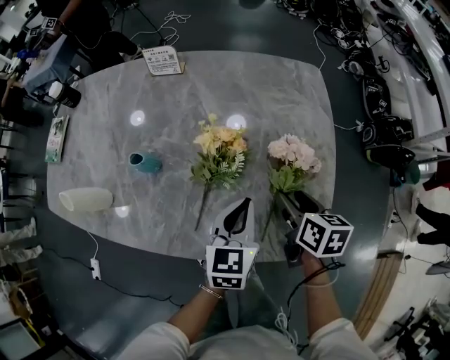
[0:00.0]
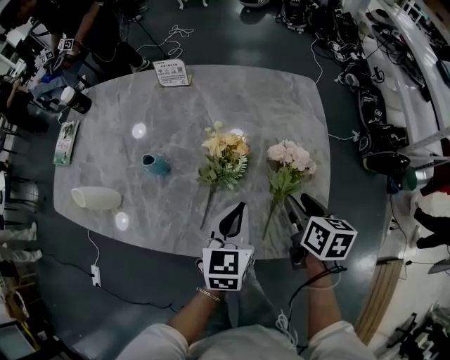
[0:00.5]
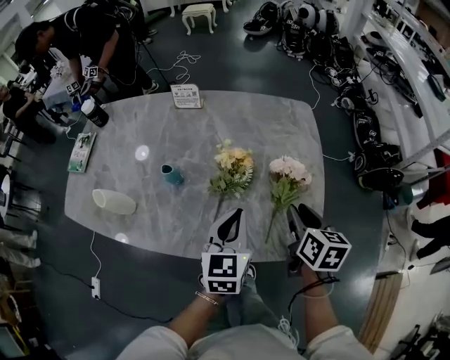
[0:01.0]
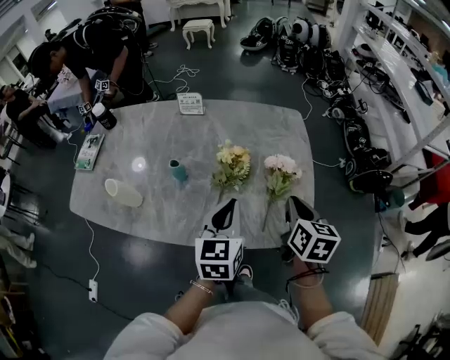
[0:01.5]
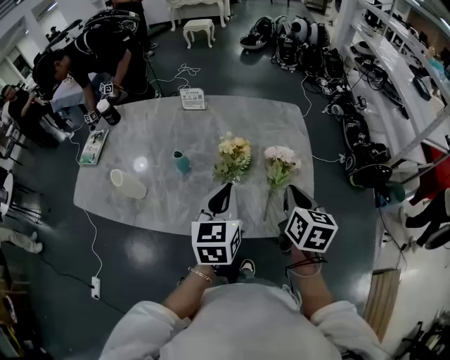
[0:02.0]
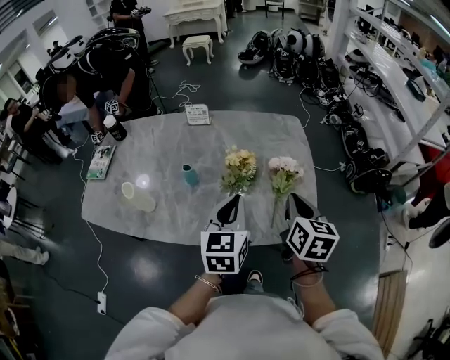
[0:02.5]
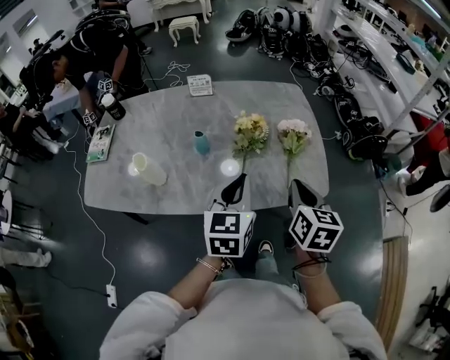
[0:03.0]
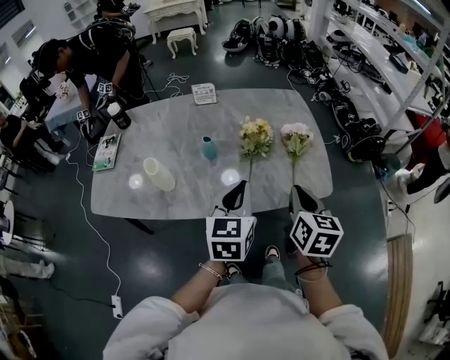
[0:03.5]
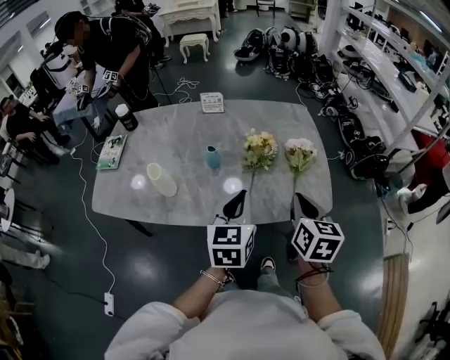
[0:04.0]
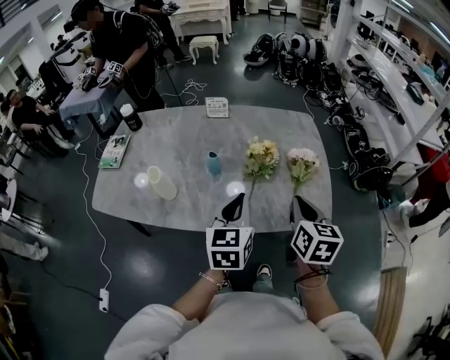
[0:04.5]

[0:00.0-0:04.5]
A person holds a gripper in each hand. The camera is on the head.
0:00.0 to 0:02.0: The left gripper shifts about 20 cm upward, backward and to the left; the right gripper shifts approximately 20 cm upward and backward, rotates approximately 20 degrees, and closes.
0:02.0 to 0:04.5: The two grippers go approximately 15 cm to the left and backward.

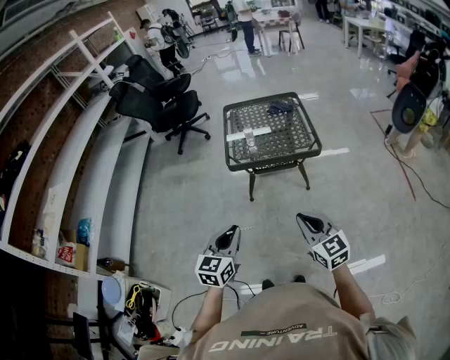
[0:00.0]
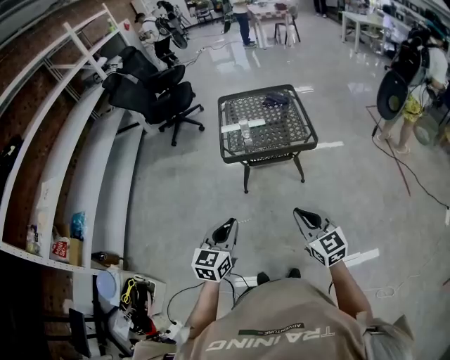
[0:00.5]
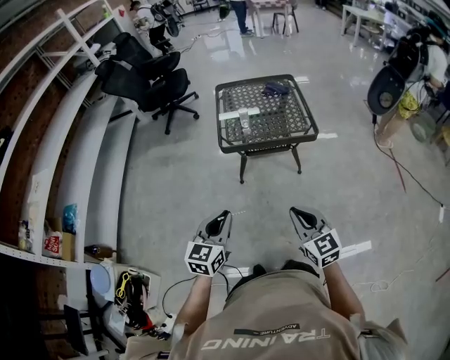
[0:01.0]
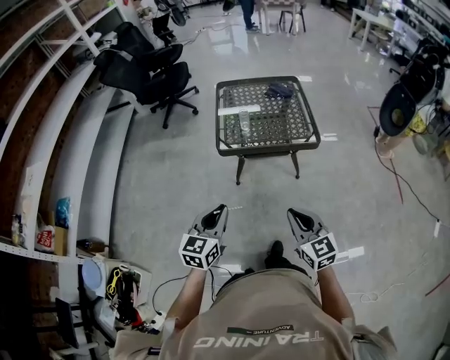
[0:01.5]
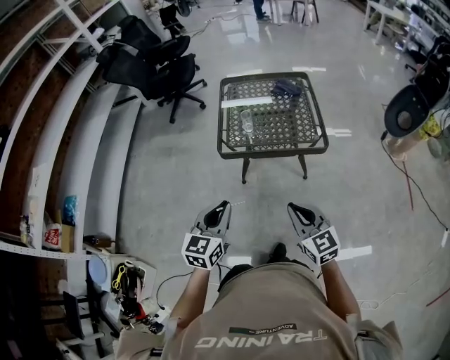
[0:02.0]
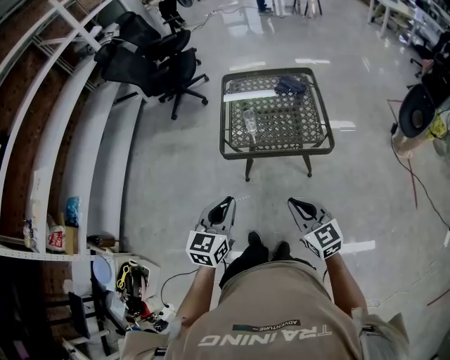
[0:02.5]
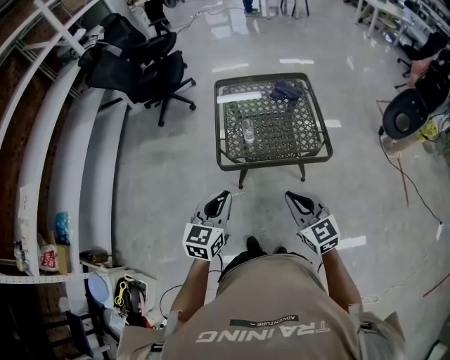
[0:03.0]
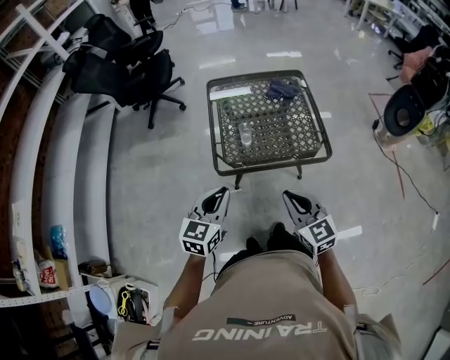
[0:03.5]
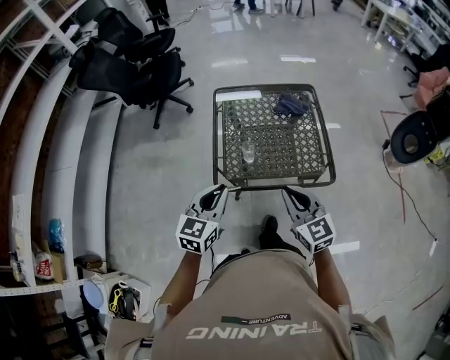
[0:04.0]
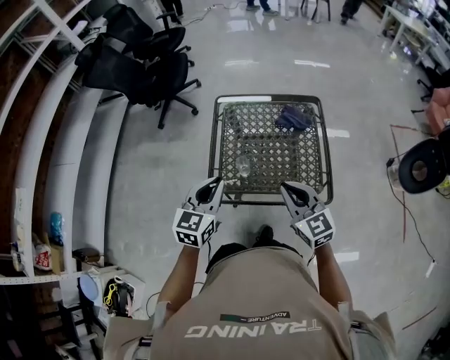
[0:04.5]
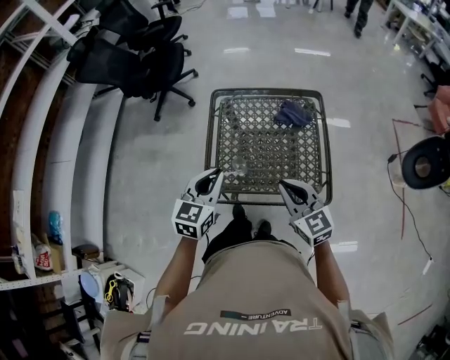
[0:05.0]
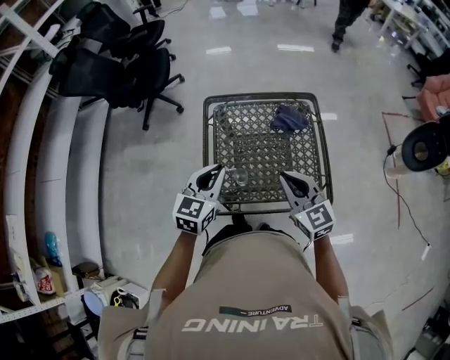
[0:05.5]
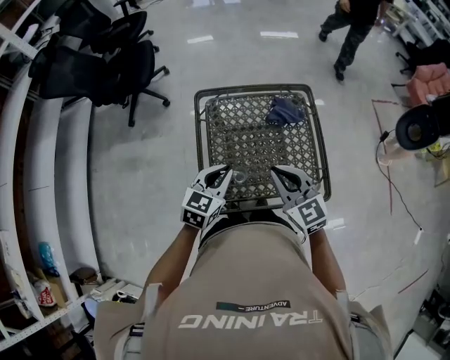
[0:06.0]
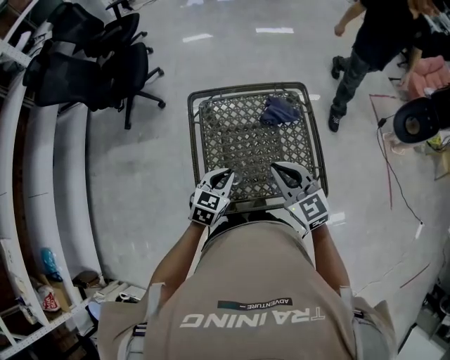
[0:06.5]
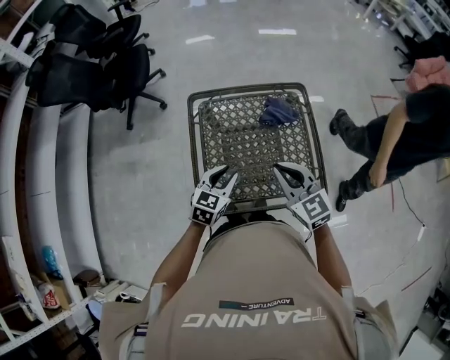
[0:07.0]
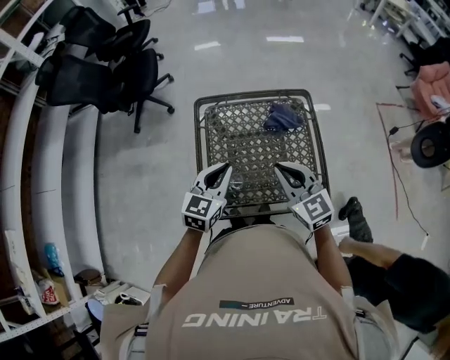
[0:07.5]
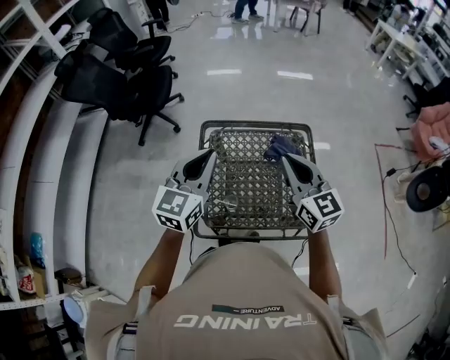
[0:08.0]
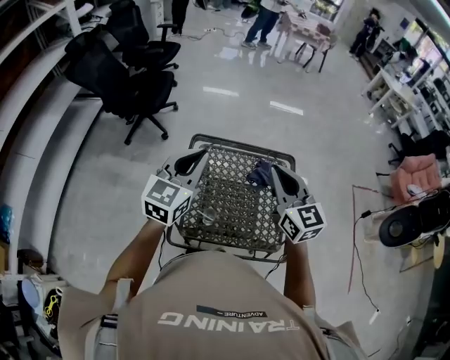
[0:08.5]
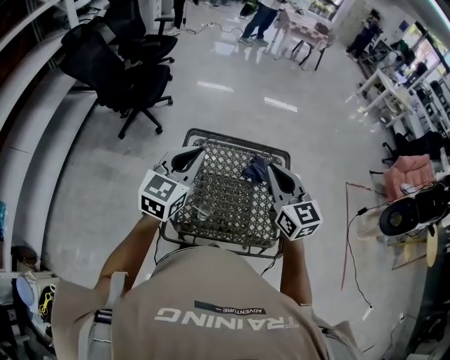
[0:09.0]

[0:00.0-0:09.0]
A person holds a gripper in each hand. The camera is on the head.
0:00.0 to 0:02.0: The grippers both shift forward by approximately 15 cm.
0:02.0 to 0:04.5: The two grippers go approximately 35 cm forward.
0:04.5 to 0:07.0: The right gripper is displaced forward by some 15 cm; the left gripper travels downward and forward by about 20 cm, and swivels some 20 degrees.
0:07.0 to 0:09.0: The right gripper heads upward and forward, covering roughly 15 cm, while the left gripper shifts some 20 cm upward, swivels roughly 30 degrees, and closes its fingers.

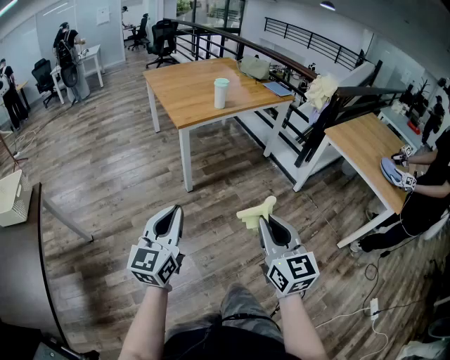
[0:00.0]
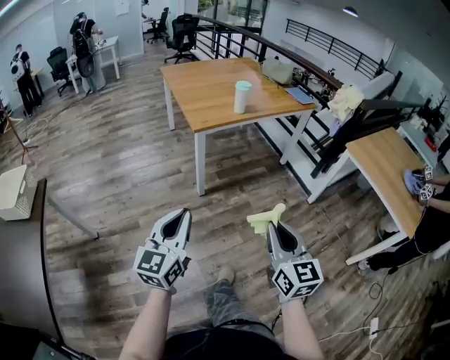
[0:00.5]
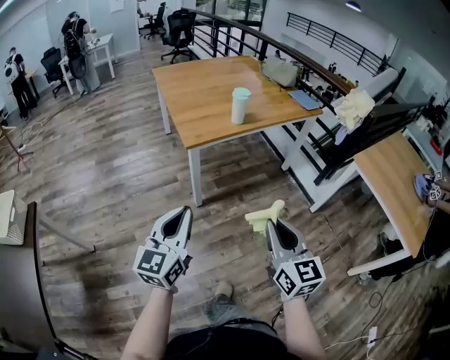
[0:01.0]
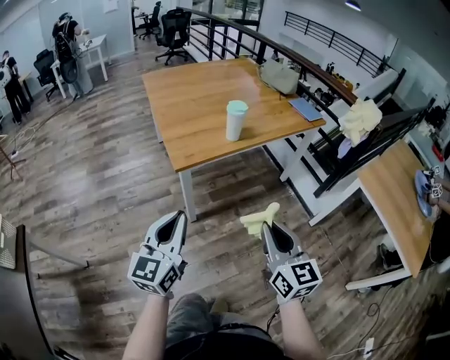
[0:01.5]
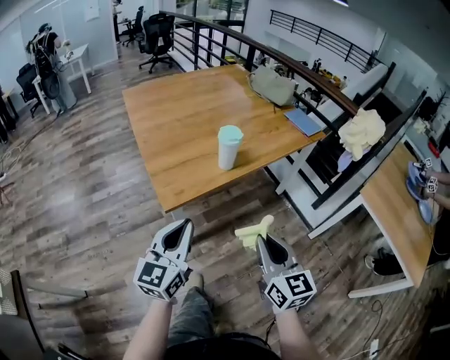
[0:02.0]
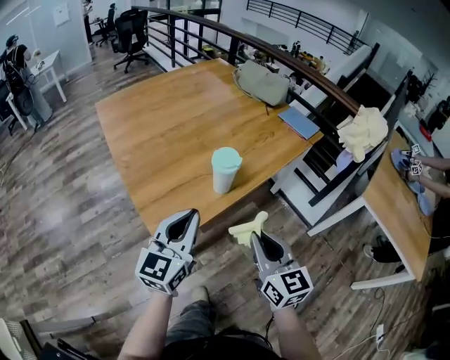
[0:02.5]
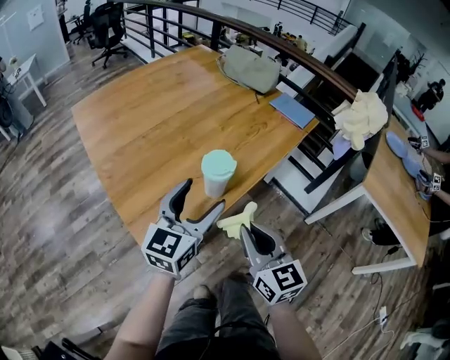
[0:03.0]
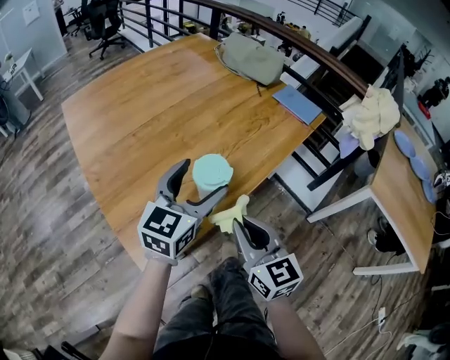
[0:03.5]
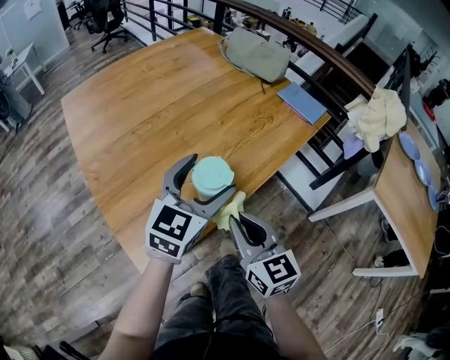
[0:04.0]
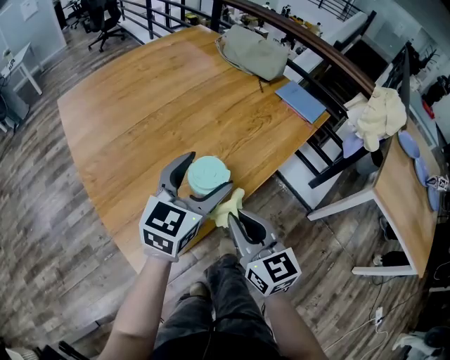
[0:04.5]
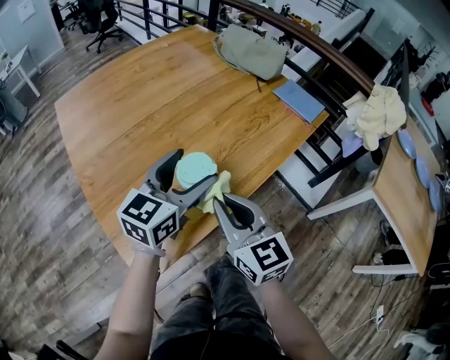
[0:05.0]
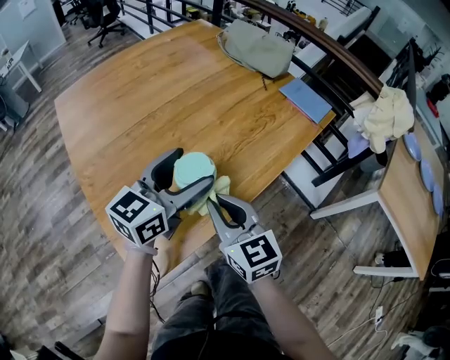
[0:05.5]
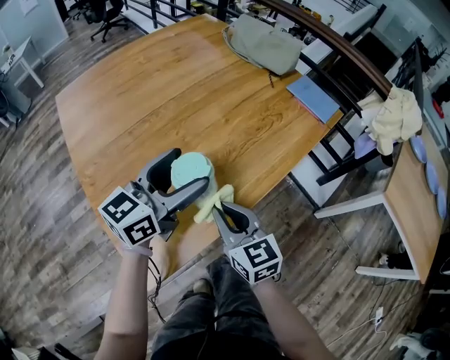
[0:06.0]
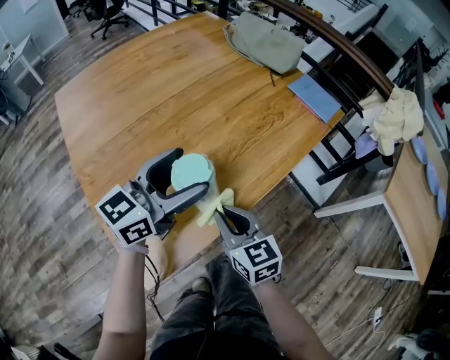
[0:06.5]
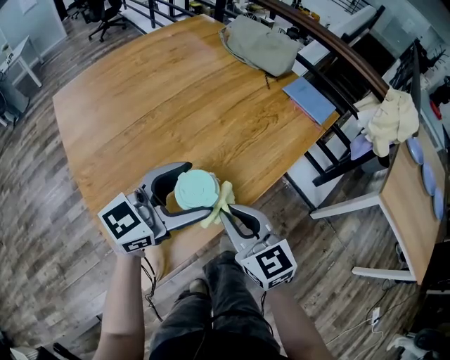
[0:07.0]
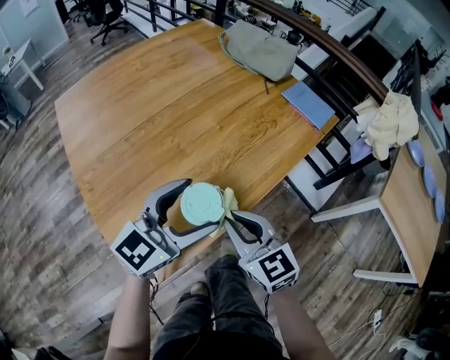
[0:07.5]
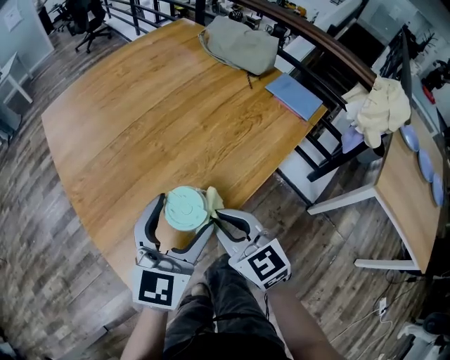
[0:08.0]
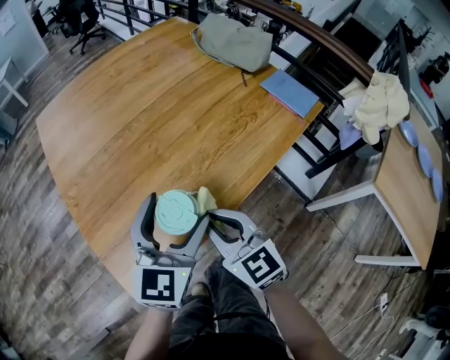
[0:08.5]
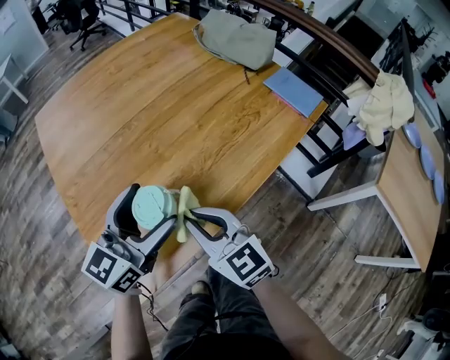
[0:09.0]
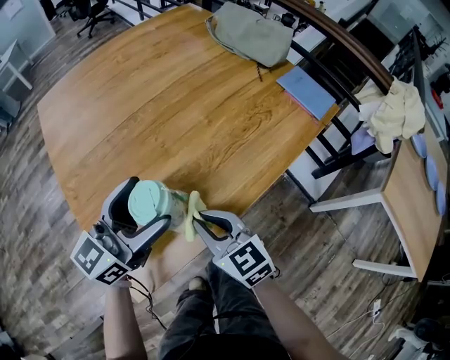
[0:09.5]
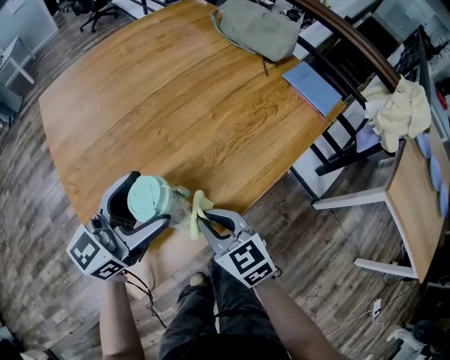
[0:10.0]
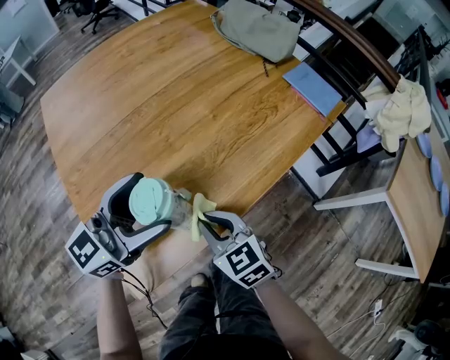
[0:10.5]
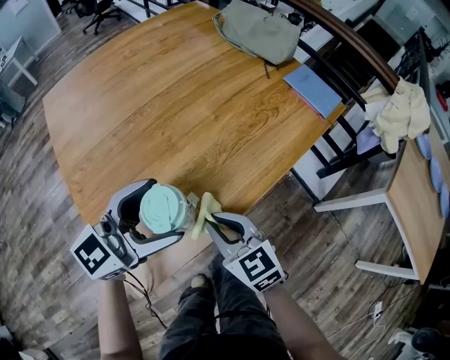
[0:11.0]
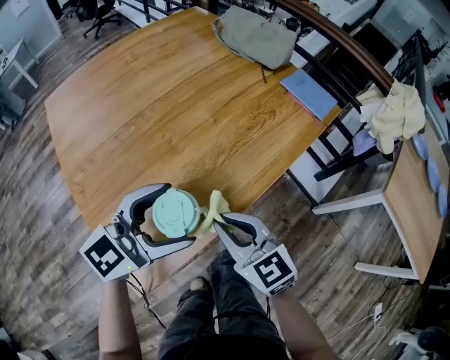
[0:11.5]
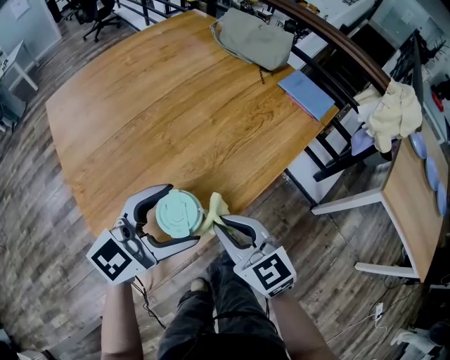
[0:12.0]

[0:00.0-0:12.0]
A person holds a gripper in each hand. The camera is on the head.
0:00.0 to 0:02.0: The two grippers travel together, forward, approximately 50 cm.
0:02.0 to 0:04.0: The grippers both shift forward by approximately 30 cm. The left gripper changes its angle by some 30 degrees, and opens up.
0:04.0 to 0:06.0: The left gripper moves to the left, some 5 cm, and rotates about 20 degrees. Meanwhile the right gripper heads forward and downward, covering some 10 cm.
0:06.0 to 0:08.0: The right gripper changes place by approximately 5 cm, while the left gripper moves backward and to the right, about 10 cm, and turns by about 30 degrees.
0:08.0 to 0:10.0: The right gripper travels downward by some 5 cm; the left gripper travels to the left by approximately 5 cm, and turns by about 30 degrees.
0:10.0 to 0:12.0: The left gripper travels to the right by about 5 cm, and rotates about 30 degrees, while the right gripper is displaced upward by about 5 cm.

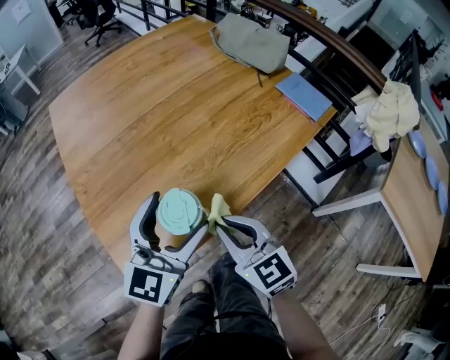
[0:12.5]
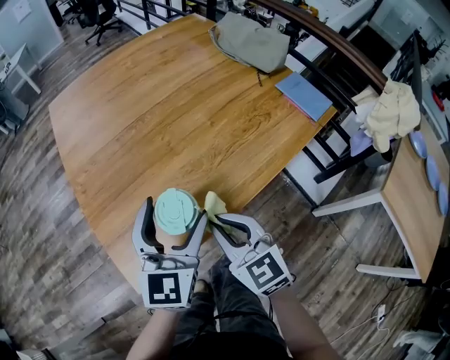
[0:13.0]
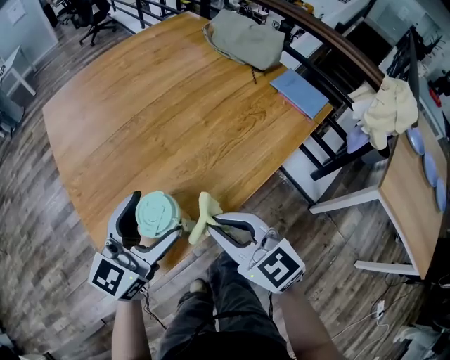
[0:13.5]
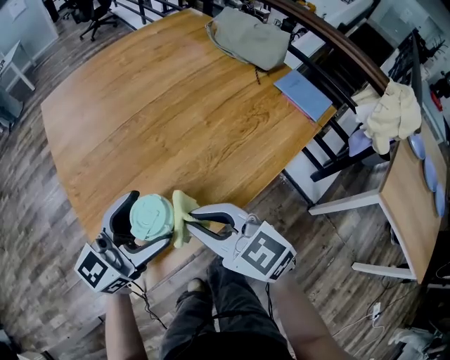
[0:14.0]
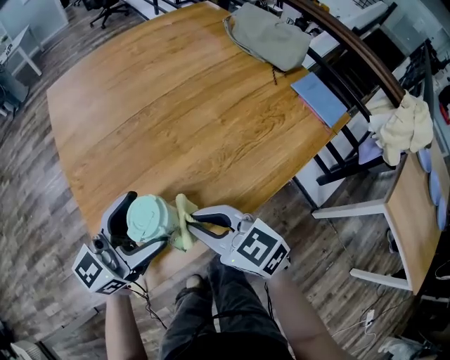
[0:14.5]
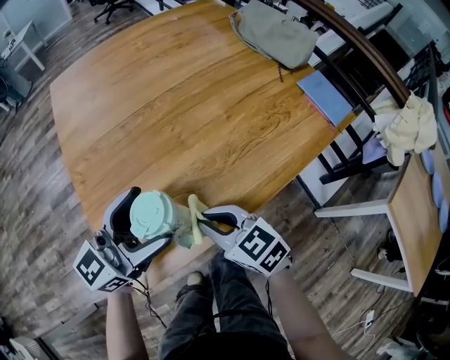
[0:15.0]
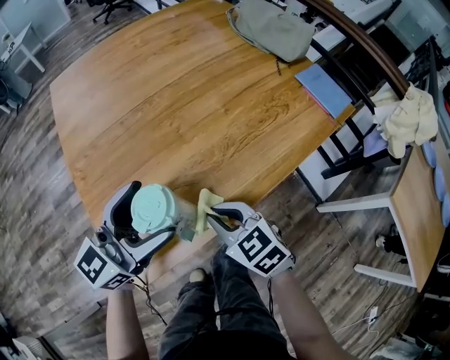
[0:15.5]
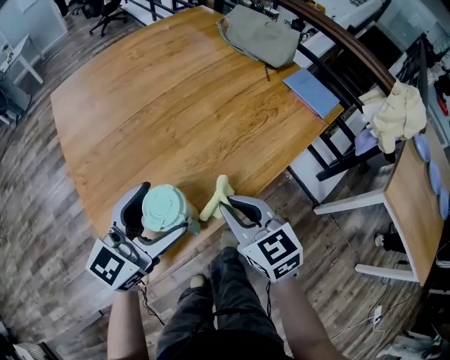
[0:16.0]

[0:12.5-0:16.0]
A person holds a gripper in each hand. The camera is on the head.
0:12.5 to 0:14.5: The two grippers go about 5 cm to the left. The left gripper turns by about 20 degrees; the right gripper changes its angle by approximately 30 degrees.
0:14.5 to 0:16.0: The right gripper heads to the right, covering approximately 10 cm, and turns by some 30 degrees.
